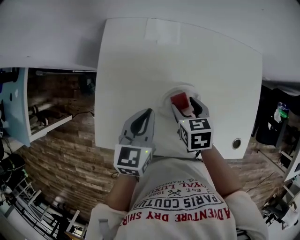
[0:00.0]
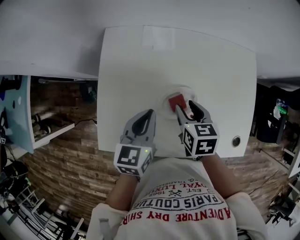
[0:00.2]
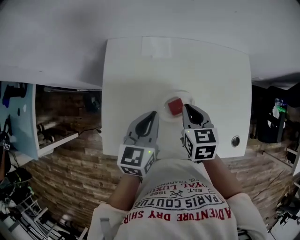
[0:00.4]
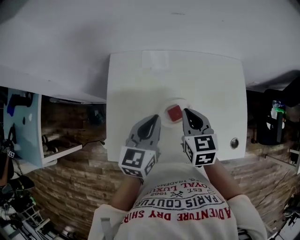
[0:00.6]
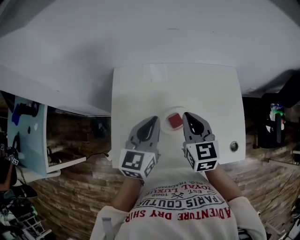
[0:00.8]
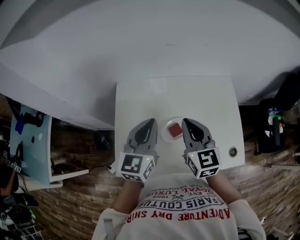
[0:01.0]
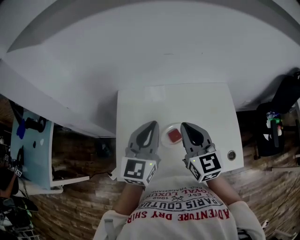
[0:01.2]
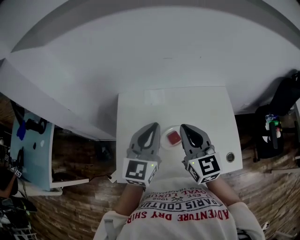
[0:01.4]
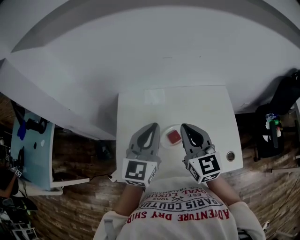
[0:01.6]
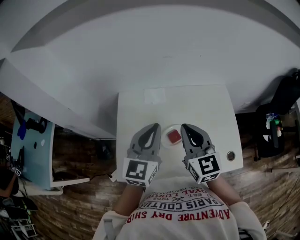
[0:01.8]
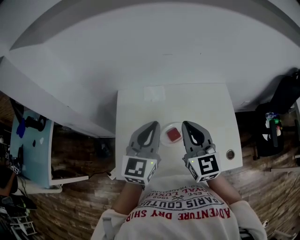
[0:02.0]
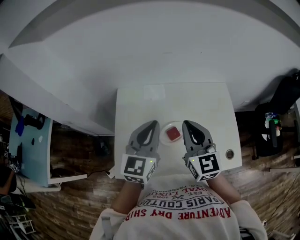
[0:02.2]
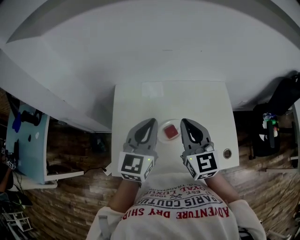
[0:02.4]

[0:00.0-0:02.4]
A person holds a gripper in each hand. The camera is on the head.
0:00.0 to 0:01.2: Both grippers travel together upward, some 25 cm. The right gripper angles its fingers upward, by approximately 50 degrees, and closes its fingers. Meanwhile the left gripper rotates some 30 degrees.
0:01.2 to 0:02.4: The grippers stay close to where they were, moving slightly.

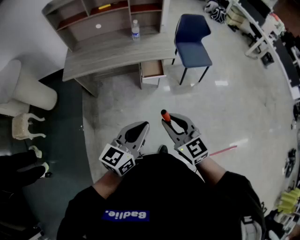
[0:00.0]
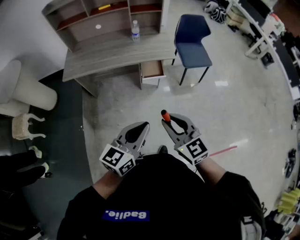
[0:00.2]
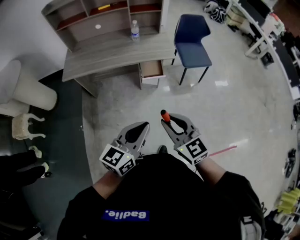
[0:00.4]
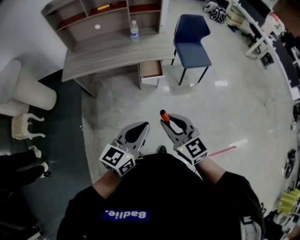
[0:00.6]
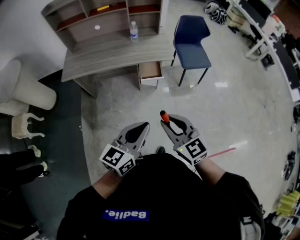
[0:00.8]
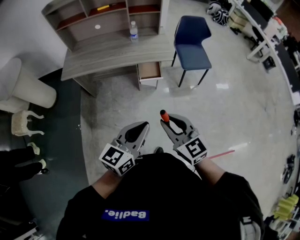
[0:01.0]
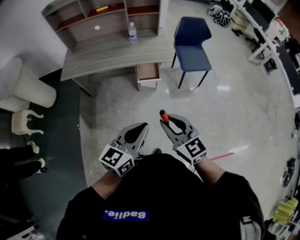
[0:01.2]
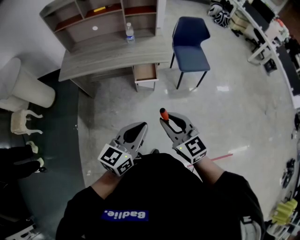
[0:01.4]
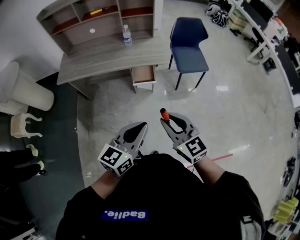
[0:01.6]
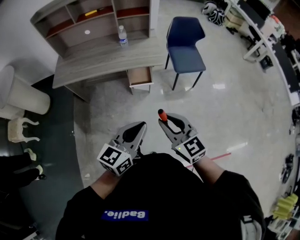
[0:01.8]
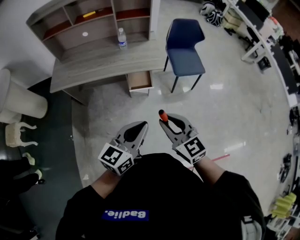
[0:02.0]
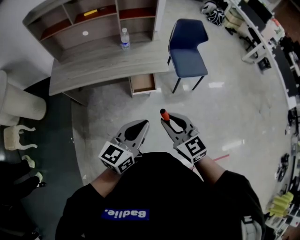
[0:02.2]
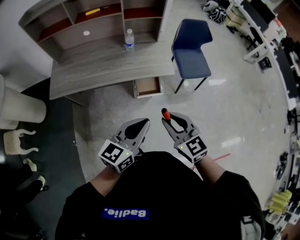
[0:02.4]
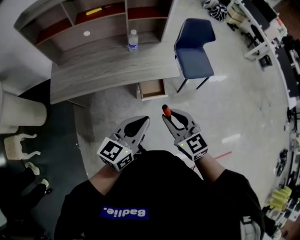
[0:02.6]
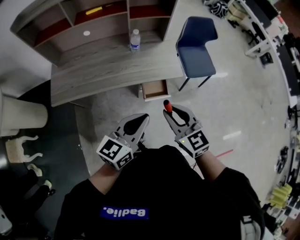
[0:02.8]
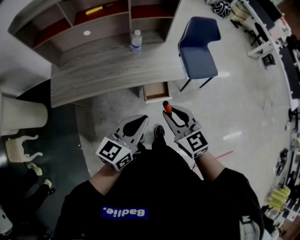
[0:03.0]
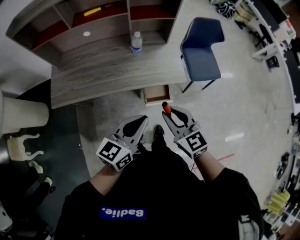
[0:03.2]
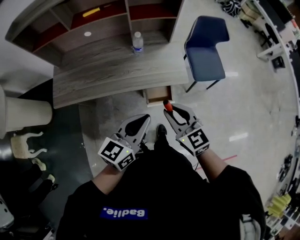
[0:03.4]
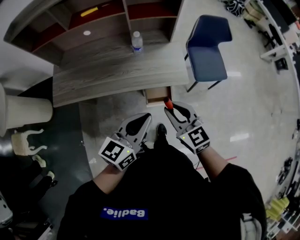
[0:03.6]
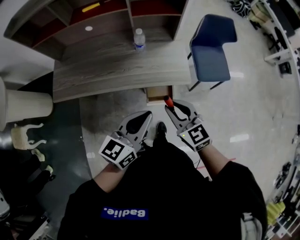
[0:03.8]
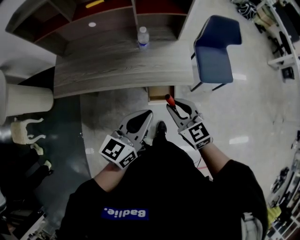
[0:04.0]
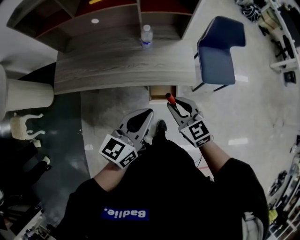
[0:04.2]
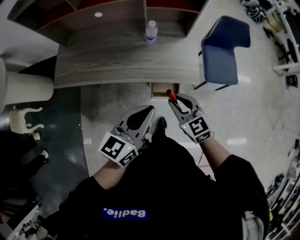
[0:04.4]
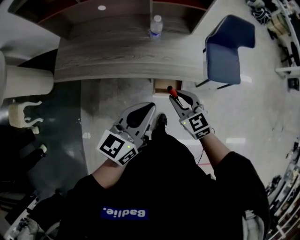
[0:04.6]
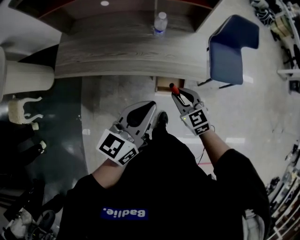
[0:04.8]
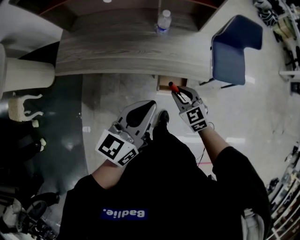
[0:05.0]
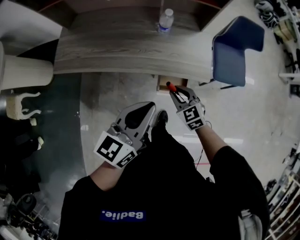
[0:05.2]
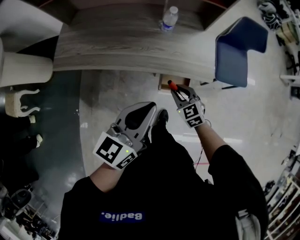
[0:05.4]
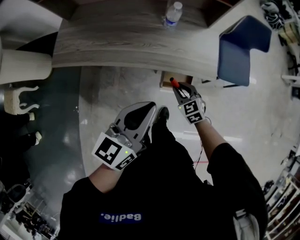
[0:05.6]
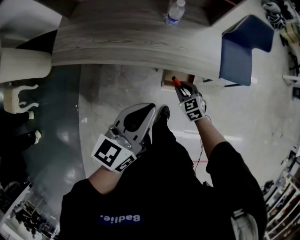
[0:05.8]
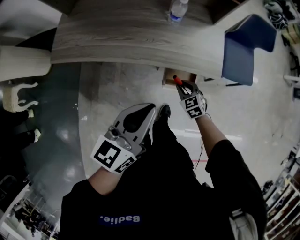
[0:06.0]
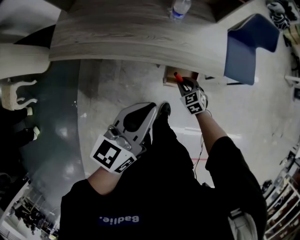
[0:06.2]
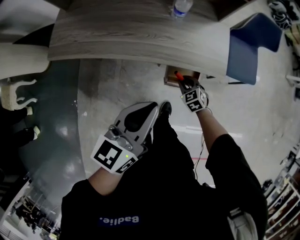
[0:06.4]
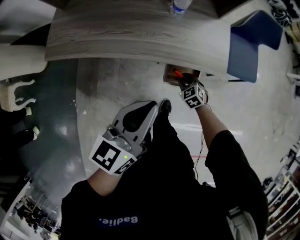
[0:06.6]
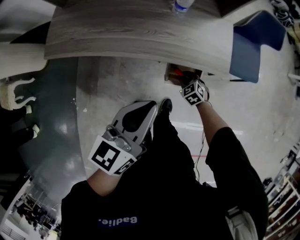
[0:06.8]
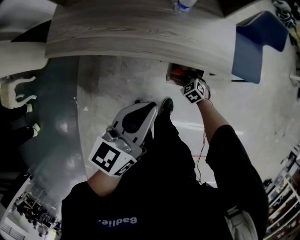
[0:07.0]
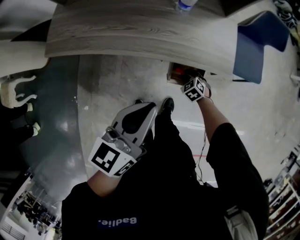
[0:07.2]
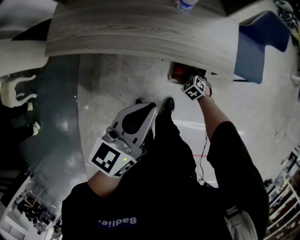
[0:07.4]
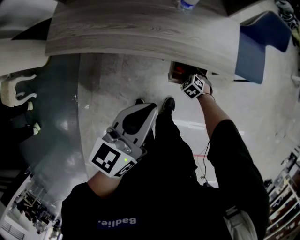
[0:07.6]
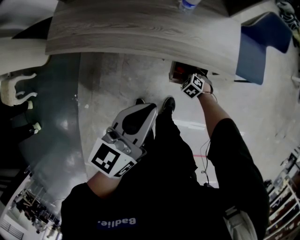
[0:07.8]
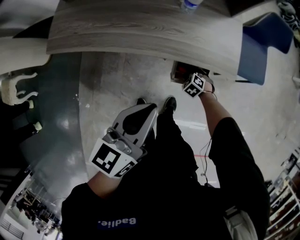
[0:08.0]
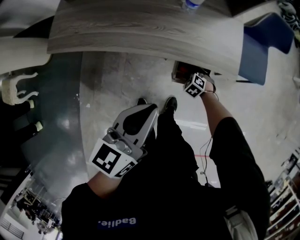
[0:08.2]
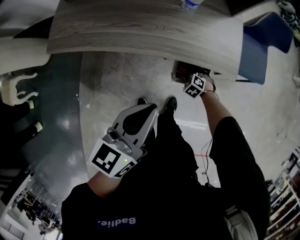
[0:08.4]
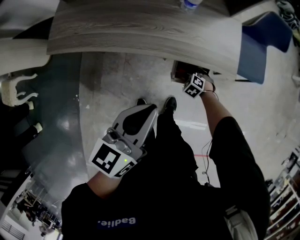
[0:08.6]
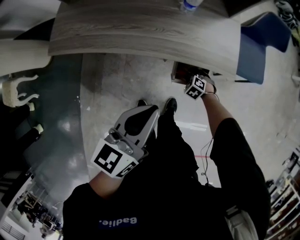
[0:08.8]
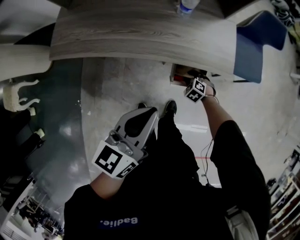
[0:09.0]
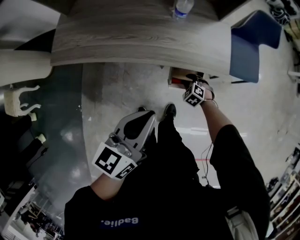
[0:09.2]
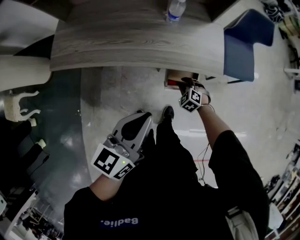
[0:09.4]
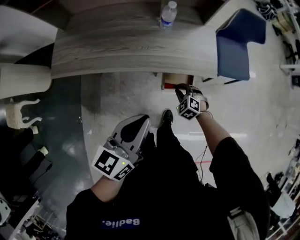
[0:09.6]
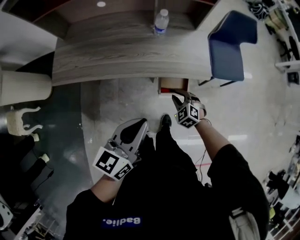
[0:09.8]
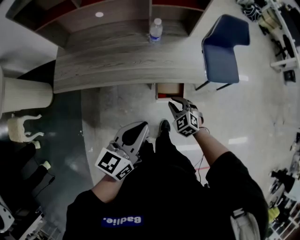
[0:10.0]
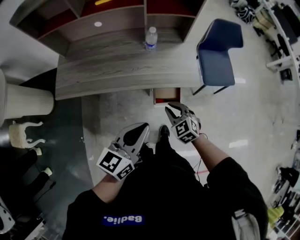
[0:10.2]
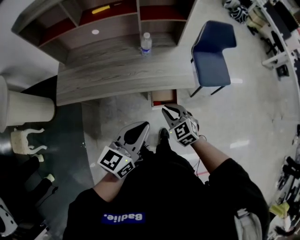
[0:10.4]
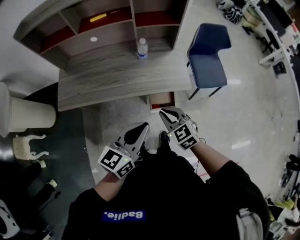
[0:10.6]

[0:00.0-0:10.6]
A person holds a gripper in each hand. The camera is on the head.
0:00.0 to 0:01.6: The grippers both shift to the right by roughly 10 cm.
0:01.6 to 0:03.0: Both grippers travel together forward and to the left, some 30 cm.
0:03.0 to 0:04.6: The left gripper heads forward, covering some 10 cm. Meanwhile the right gripper moves downward and forward, roughly 15 cm.
0:04.6 to 0:06.0: The right gripper heads downward, covering approximately 25 cm, while the left gripper moves downward and to the left, roughly 5 cm.
0:06.0 to 0:07.6: The right gripper is displaced downward by some 15 cm, and turns by some 30 degrees.
0:07.6 to 0:09.0: The grippers make only small movements.
0:09.0 to 0:10.6: The right gripper shifts about 40 cm upward, tips its fingers upward by about 40 degrees, and closes its fingers. Meanwhile the left gripper travels upward by approximately 10 cm.

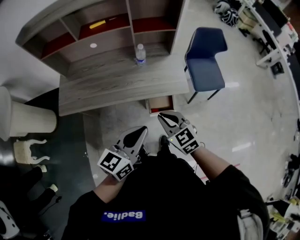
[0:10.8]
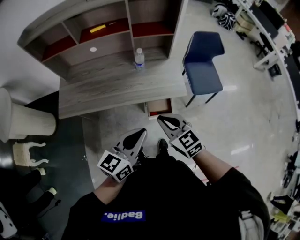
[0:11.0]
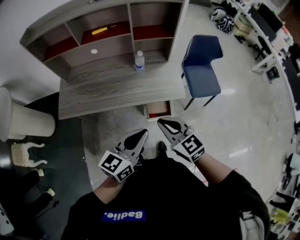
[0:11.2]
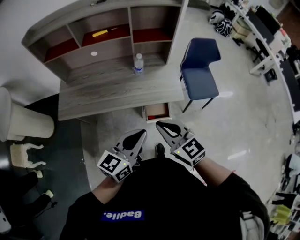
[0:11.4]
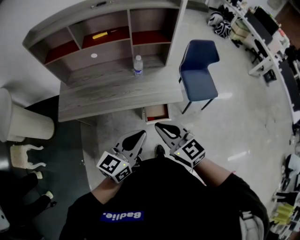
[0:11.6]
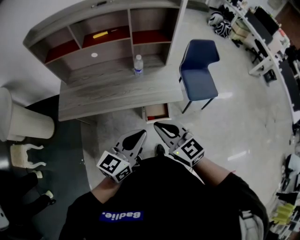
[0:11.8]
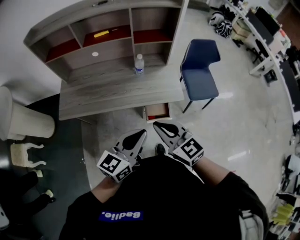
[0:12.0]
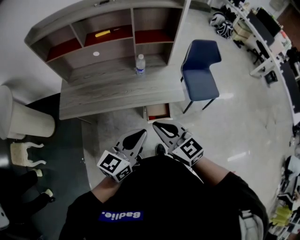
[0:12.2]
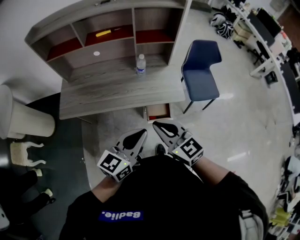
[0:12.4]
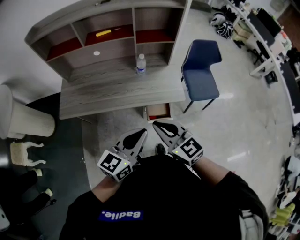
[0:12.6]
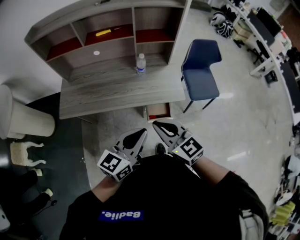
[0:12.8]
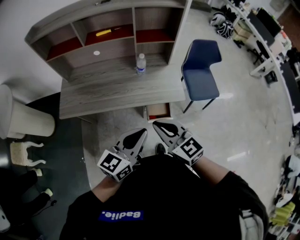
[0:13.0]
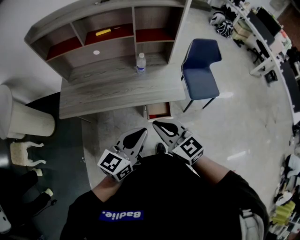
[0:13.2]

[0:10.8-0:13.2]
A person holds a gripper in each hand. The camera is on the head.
0:10.8 to 0:12.0: The right gripper is displaced upward by about 10 cm.
0:12.0 to 0:13.2: Both grippers stay put.

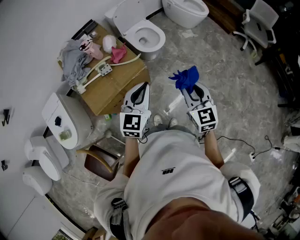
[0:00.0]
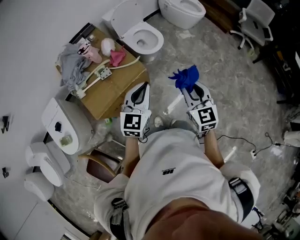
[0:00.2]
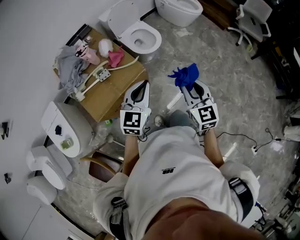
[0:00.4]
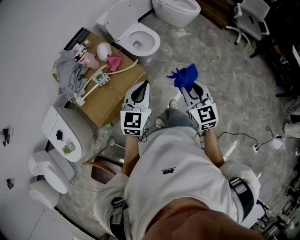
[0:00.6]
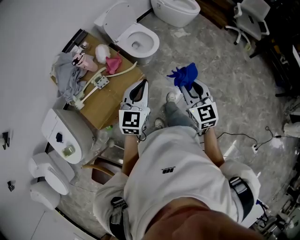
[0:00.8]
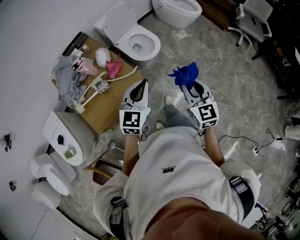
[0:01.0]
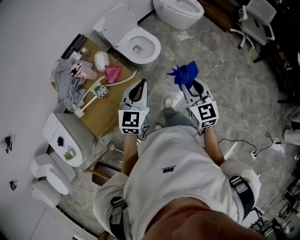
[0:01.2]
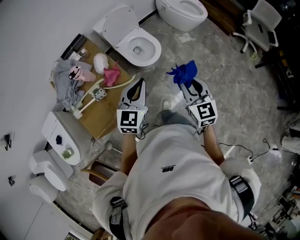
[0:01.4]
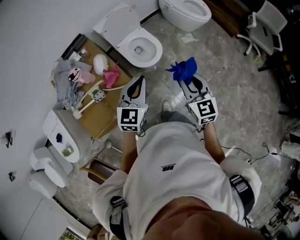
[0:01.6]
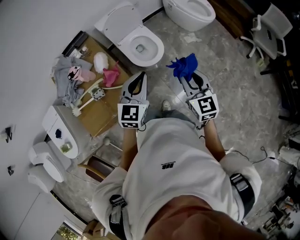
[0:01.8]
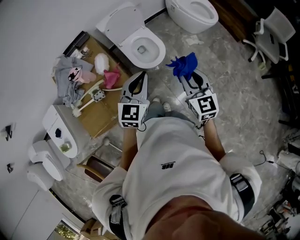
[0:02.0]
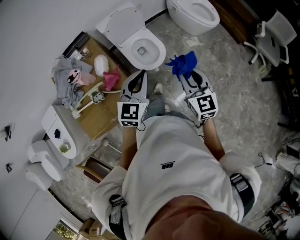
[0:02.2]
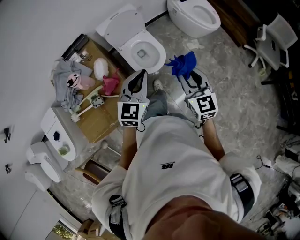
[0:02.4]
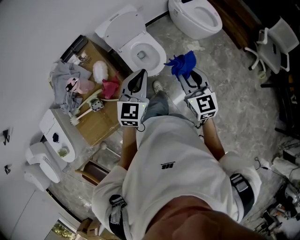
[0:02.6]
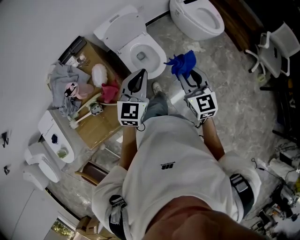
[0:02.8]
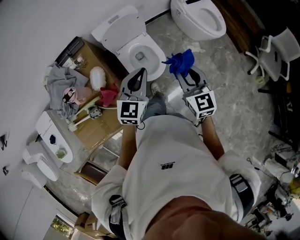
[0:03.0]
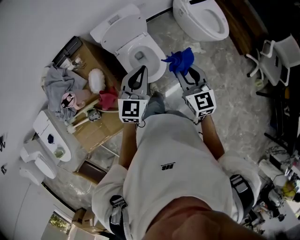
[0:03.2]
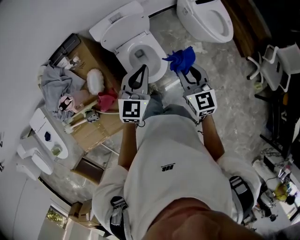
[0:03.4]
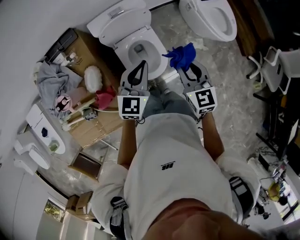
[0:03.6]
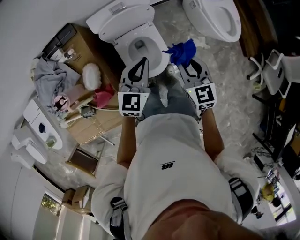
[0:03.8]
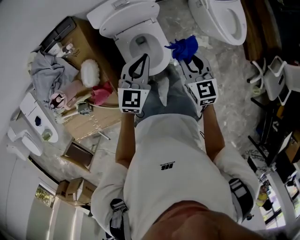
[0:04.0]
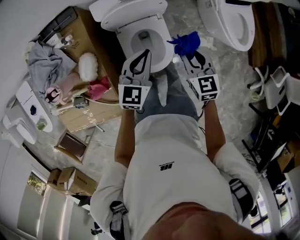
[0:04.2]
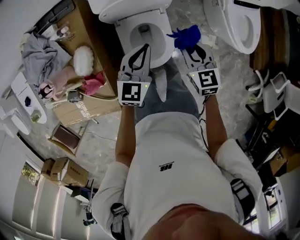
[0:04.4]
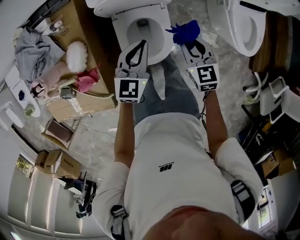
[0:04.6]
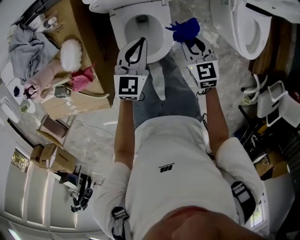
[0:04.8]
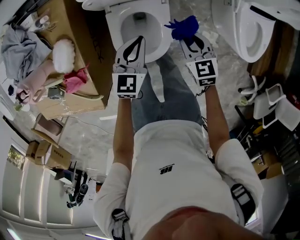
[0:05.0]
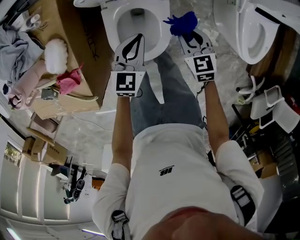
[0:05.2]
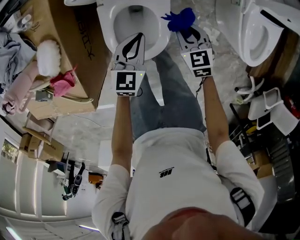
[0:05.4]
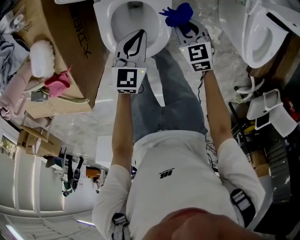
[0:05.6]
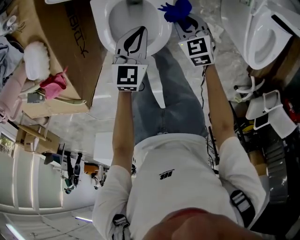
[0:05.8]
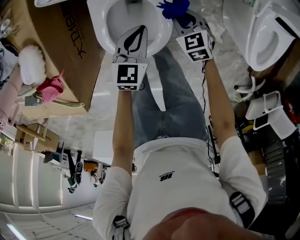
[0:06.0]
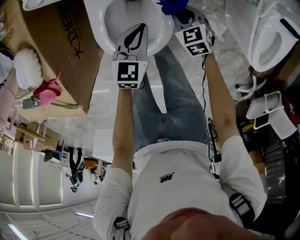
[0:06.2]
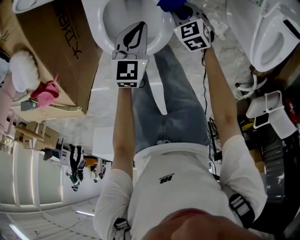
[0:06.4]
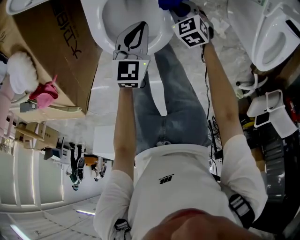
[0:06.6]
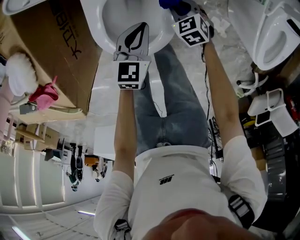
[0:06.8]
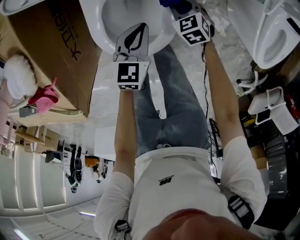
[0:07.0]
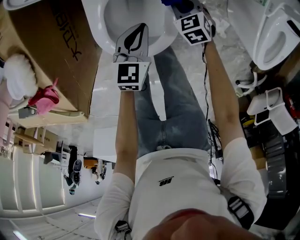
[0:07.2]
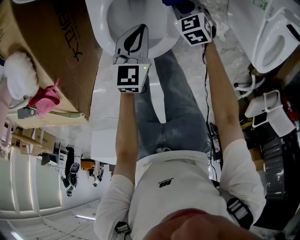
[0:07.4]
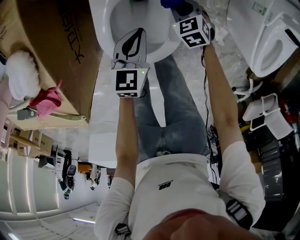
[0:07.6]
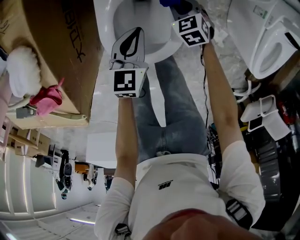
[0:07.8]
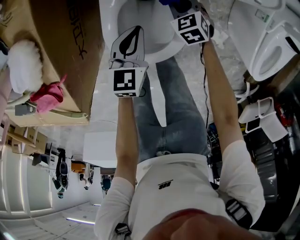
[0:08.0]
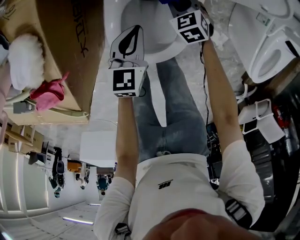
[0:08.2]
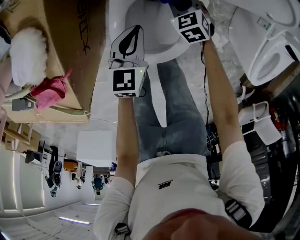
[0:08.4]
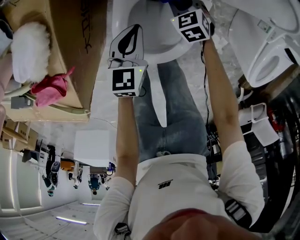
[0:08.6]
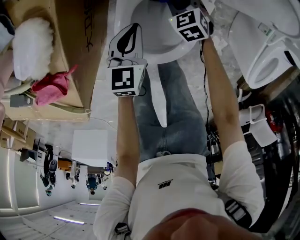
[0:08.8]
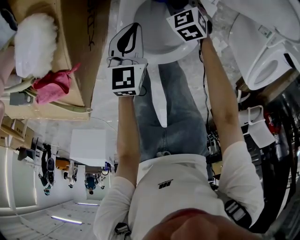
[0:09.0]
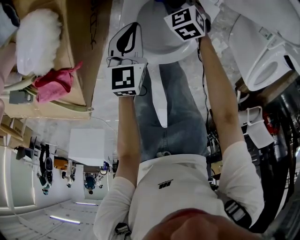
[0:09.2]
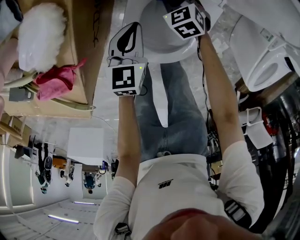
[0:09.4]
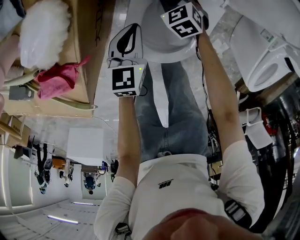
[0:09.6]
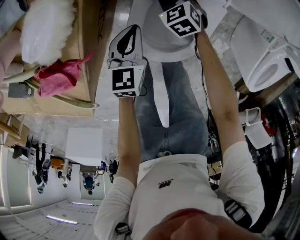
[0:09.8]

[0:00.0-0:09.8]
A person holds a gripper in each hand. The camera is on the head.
0:00.0 to 0:01.4: The grippers both shift forward by some 20 cm.
0:01.4 to 0:02.8: Both grippers move forward, roughly 25 cm.
0:02.8 to 0:04.2: Both grippers move forward and downward, about 35 cm. The right gripper swivels some 30 degrees.
0:04.2 to 0:05.6: Both grippers travel together downward, about 30 cm. The right gripper turns by some 30 degrees; the left gripper changes its angle by some 20 degrees.
0:05.6 to 0:07.0: Both grippers move downward, roughly 15 cm.
0:07.0 to 0:08.4: The left gripper heads to the left, covering approximately 10 cm. The right gripper goes approximately 15 cm to the left and forward.
0:08.4 to 0:09.8: Both grippers move to the left, roughly 10 cm.
